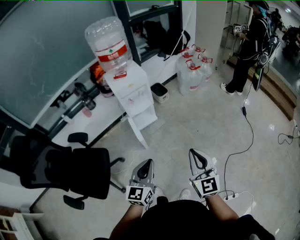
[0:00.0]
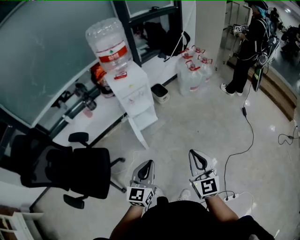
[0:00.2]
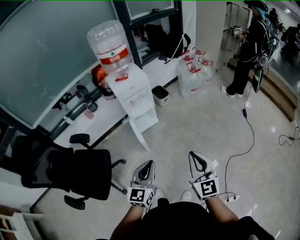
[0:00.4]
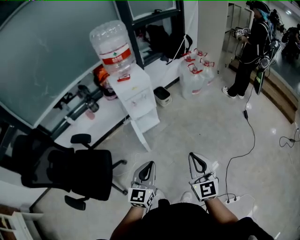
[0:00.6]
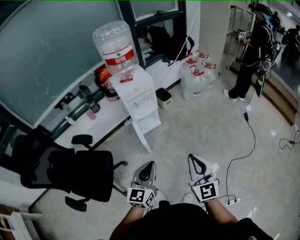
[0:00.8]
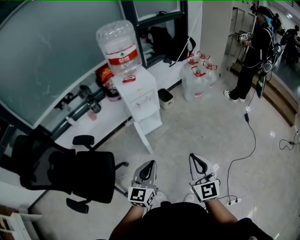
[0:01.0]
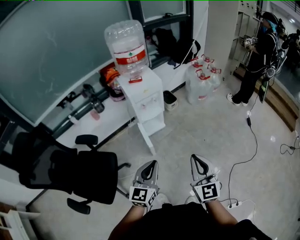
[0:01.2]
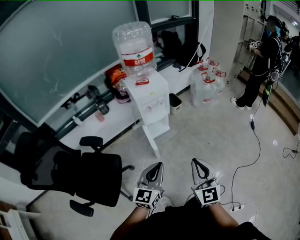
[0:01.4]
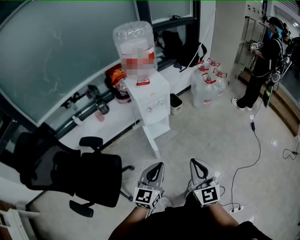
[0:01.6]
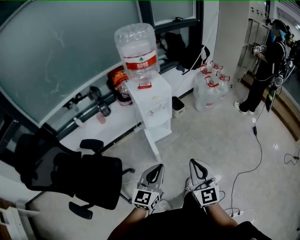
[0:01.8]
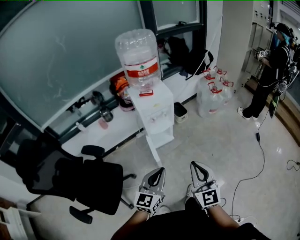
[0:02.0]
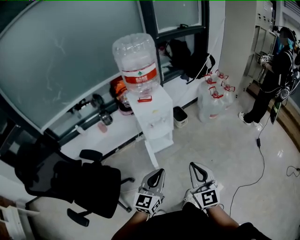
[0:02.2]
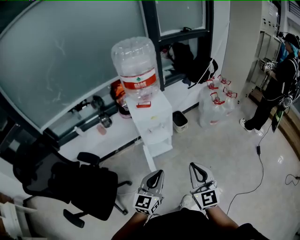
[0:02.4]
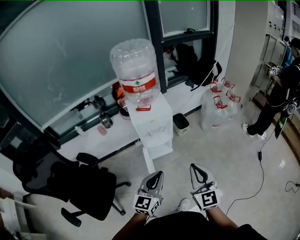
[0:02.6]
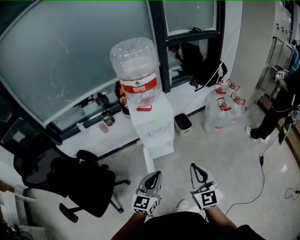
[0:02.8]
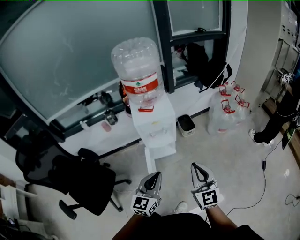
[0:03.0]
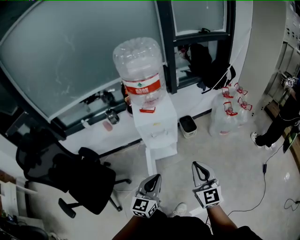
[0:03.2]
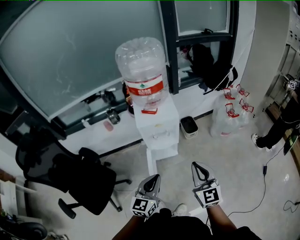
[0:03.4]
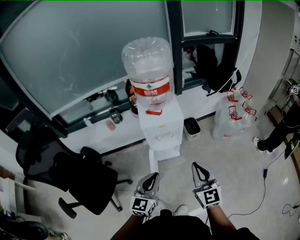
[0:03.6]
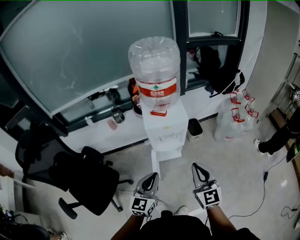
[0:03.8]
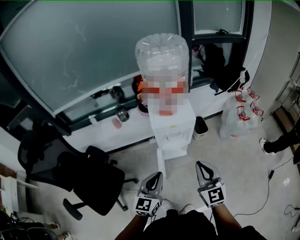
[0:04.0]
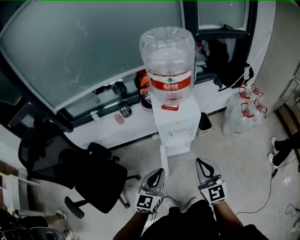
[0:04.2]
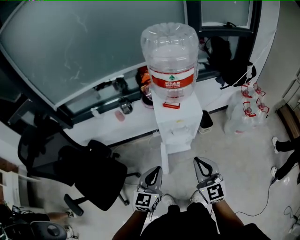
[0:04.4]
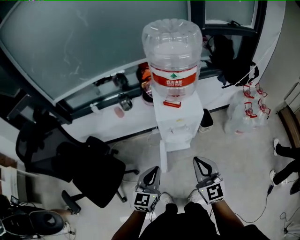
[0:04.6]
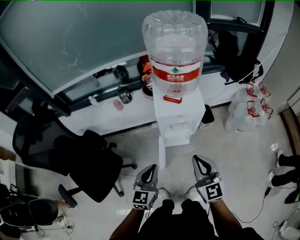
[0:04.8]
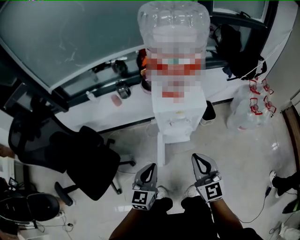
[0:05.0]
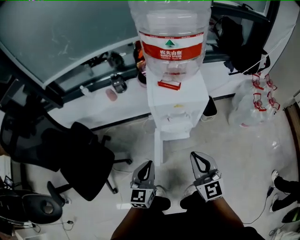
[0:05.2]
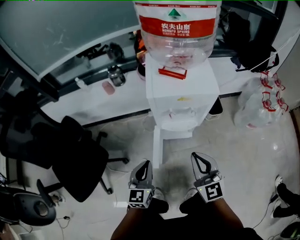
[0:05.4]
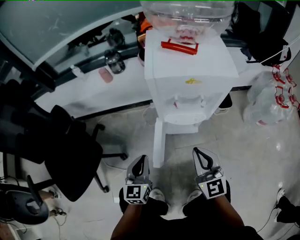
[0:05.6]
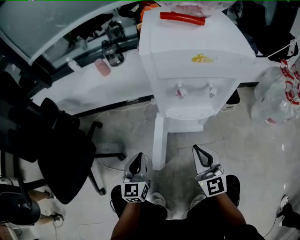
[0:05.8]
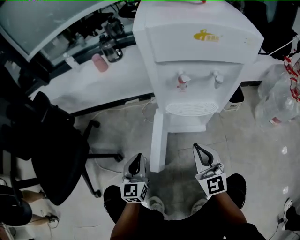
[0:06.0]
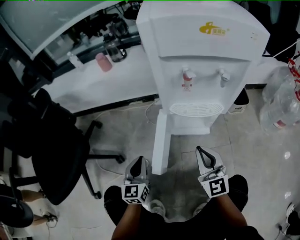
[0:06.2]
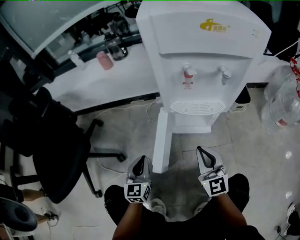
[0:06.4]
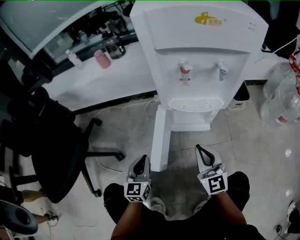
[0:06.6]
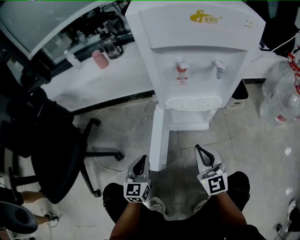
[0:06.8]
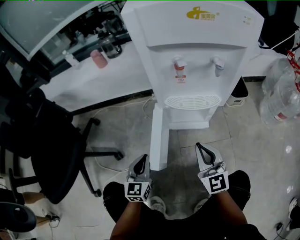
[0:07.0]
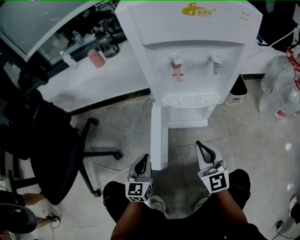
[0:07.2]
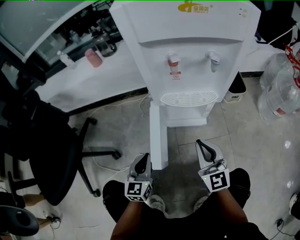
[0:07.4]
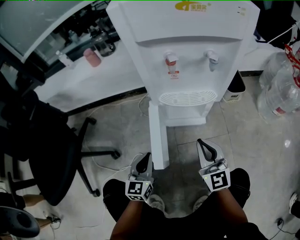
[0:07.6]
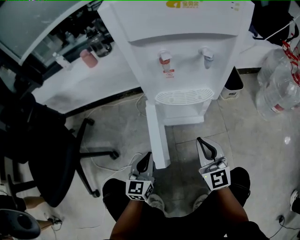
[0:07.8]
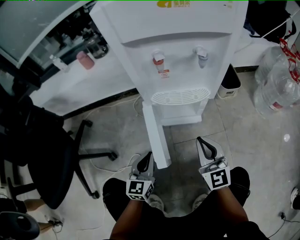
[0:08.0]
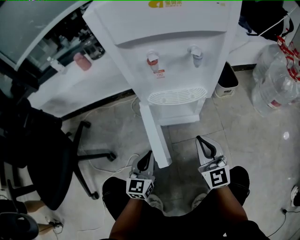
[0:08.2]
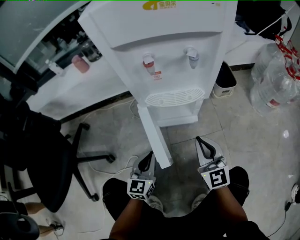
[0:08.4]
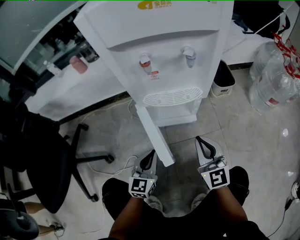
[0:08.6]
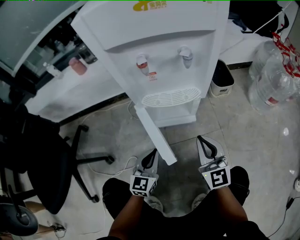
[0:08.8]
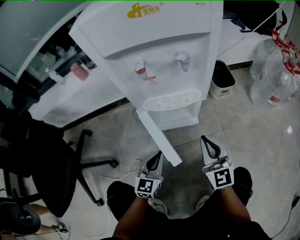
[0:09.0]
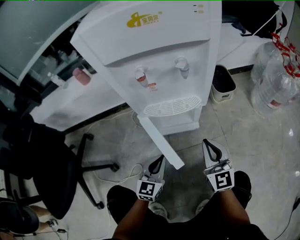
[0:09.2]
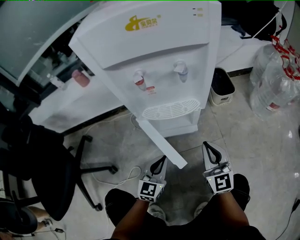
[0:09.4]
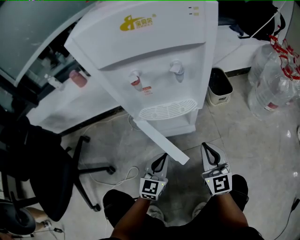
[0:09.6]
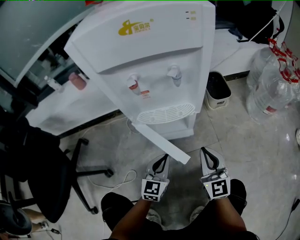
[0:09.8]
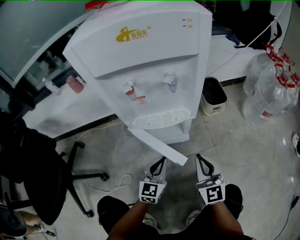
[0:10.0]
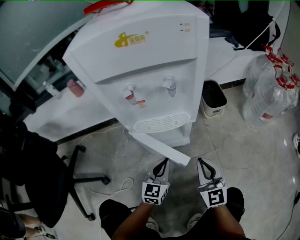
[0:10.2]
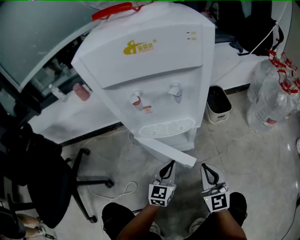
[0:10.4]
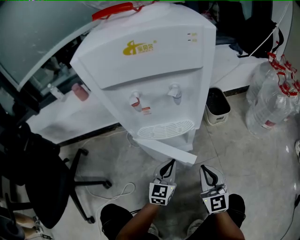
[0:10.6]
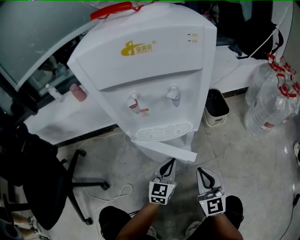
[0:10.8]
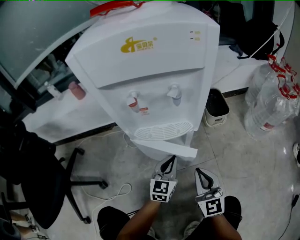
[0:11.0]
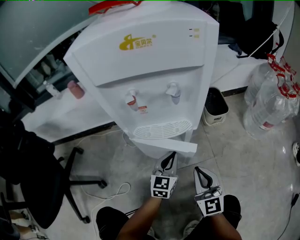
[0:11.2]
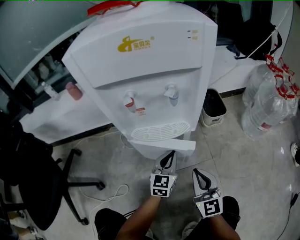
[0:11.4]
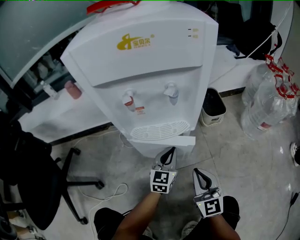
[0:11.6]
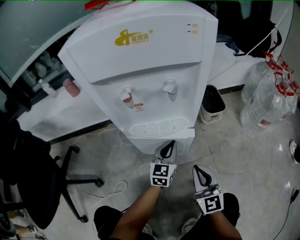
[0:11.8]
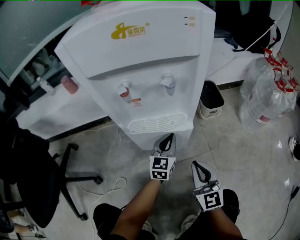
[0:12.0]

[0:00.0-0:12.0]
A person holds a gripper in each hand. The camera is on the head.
0:00.0 to 0:01.6: The left gripper heads to the left, covering approximately 5 cm, while the right gripper goes roughly 10 cm to the left.
0:01.6 to 0:03.0: Both grippers travel together forward and to the right, about 25 cm.
0:03.0 to 0:04.4: The grippers both shift to the left and forward by some 15 cm.
0:04.4 to 0:06.0: Both grippers move downward, roughly 50 cm. The left gripper rotates some 20 degrees.
0:06.0 to 0:07.6: The right gripper heads downward, covering approximately 5 cm. The left gripper moves downward and to the right, some 10 cm.
0:07.6 to 0:09.0: The two grippers go roughly 10 cm to the right.
0:09.0 to 0:10.4: The left gripper moves to the right and forward, roughly 10 cm.
0:10.4 to 0:12.0: The left gripper travels forward by some 10 cm.

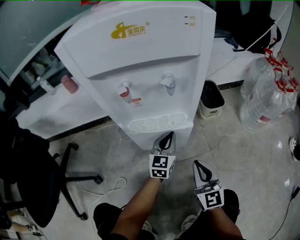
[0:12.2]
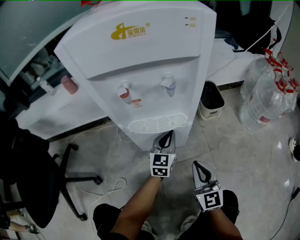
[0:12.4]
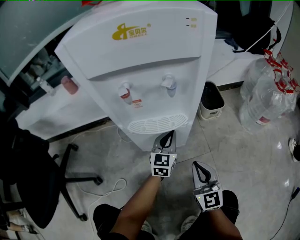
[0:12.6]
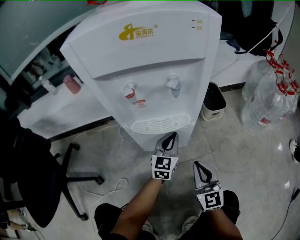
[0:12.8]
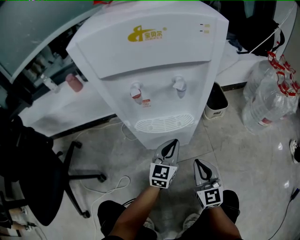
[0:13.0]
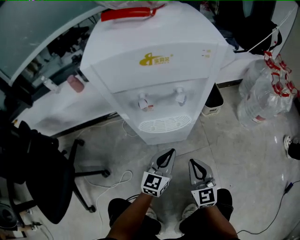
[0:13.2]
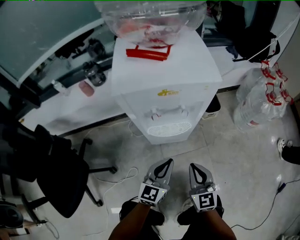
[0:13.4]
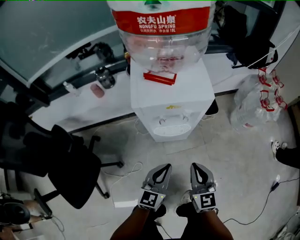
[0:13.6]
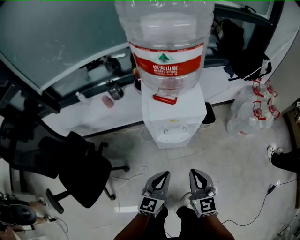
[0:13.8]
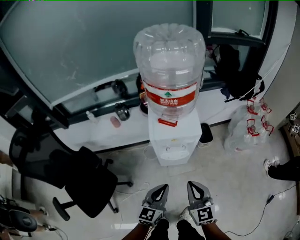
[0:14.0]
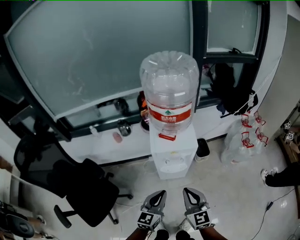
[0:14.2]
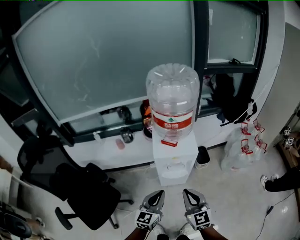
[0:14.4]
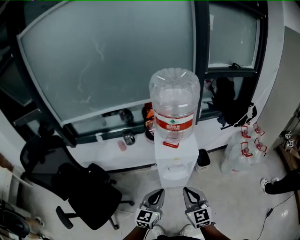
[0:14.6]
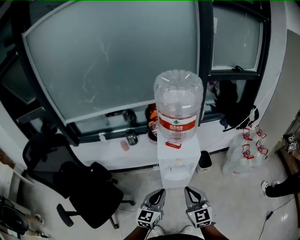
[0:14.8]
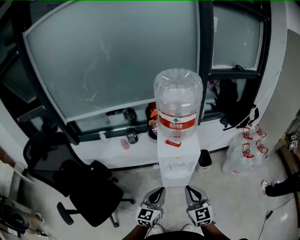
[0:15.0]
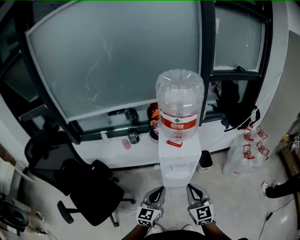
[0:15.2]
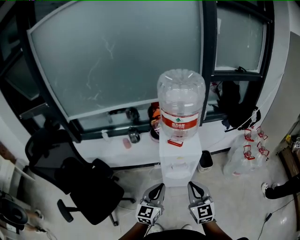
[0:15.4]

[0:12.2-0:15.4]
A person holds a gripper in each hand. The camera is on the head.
0:12.2 to 0:13.8: The right gripper heads upward, covering about 40 cm; the left gripper goes roughly 50 cm upward and backward.
0:13.8 to 0:15.4: Both grippers travel together upward, approximately 20 cm.

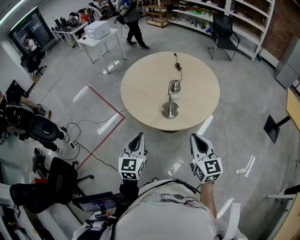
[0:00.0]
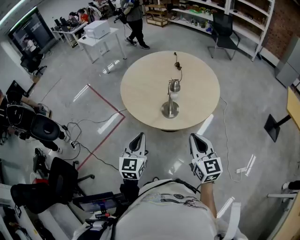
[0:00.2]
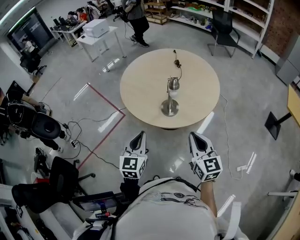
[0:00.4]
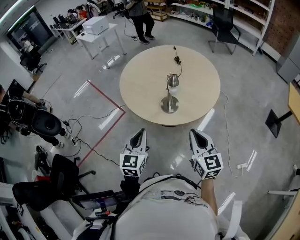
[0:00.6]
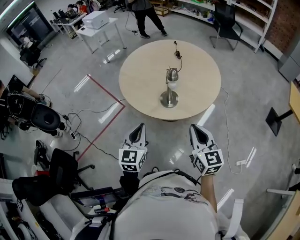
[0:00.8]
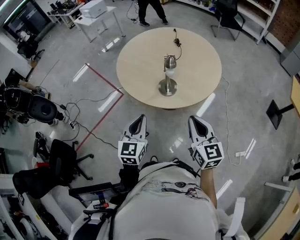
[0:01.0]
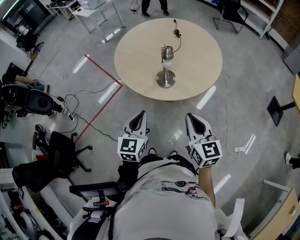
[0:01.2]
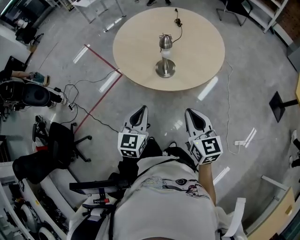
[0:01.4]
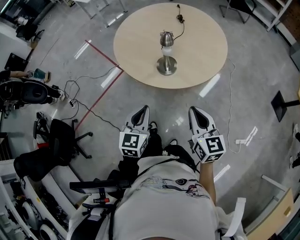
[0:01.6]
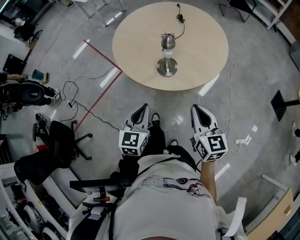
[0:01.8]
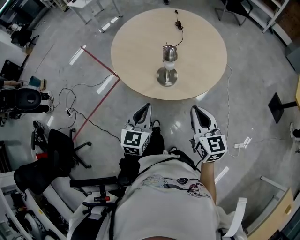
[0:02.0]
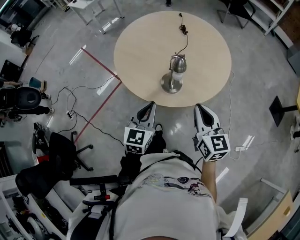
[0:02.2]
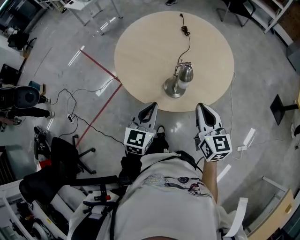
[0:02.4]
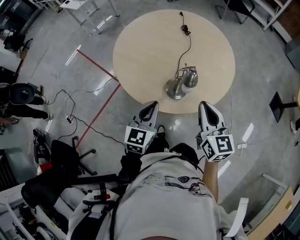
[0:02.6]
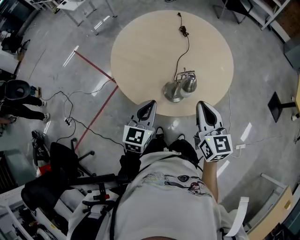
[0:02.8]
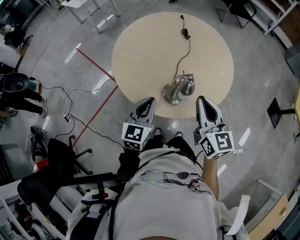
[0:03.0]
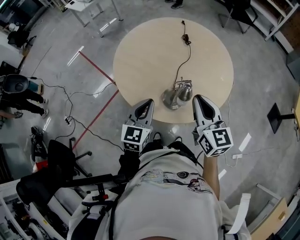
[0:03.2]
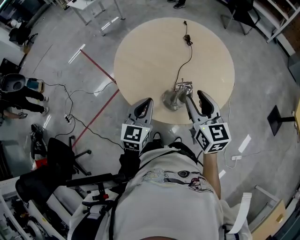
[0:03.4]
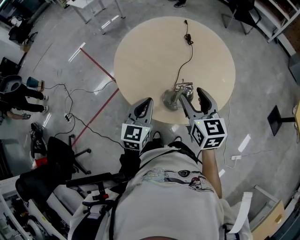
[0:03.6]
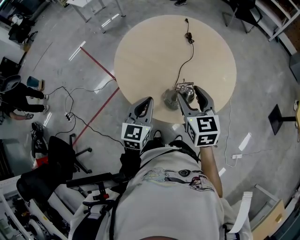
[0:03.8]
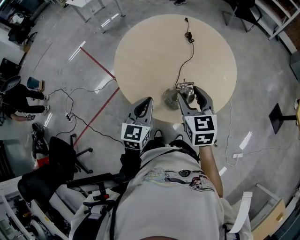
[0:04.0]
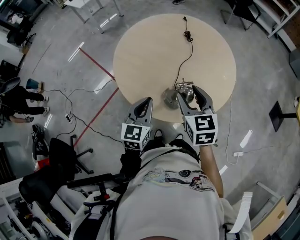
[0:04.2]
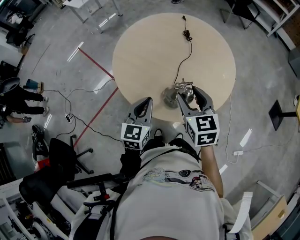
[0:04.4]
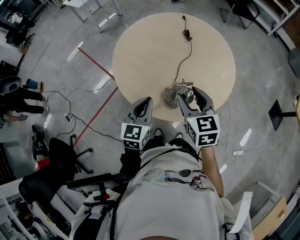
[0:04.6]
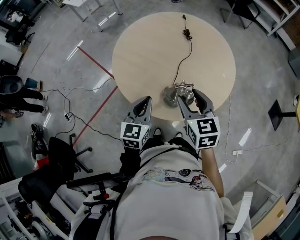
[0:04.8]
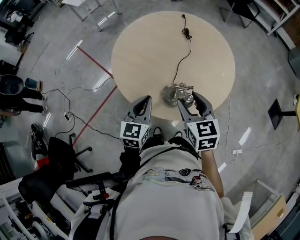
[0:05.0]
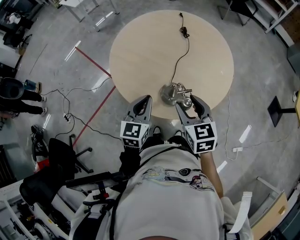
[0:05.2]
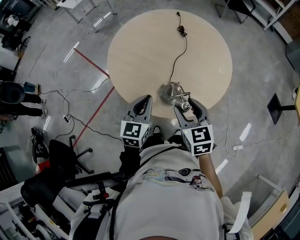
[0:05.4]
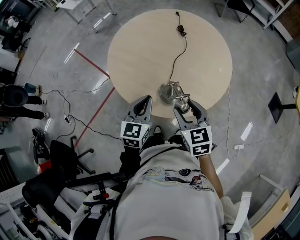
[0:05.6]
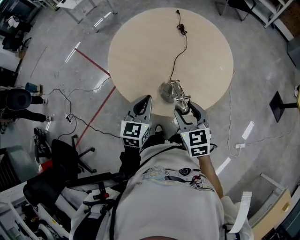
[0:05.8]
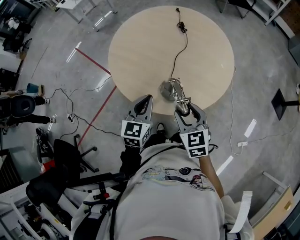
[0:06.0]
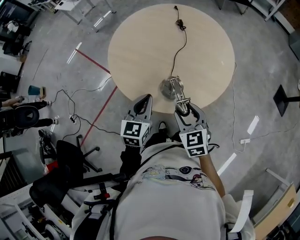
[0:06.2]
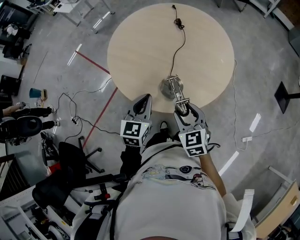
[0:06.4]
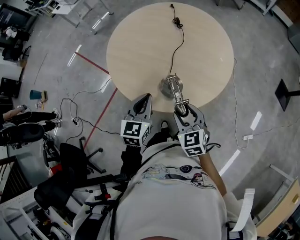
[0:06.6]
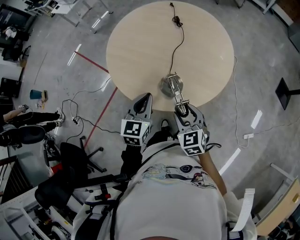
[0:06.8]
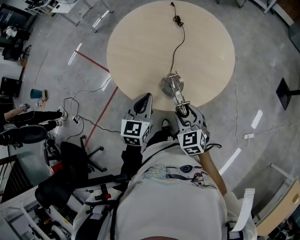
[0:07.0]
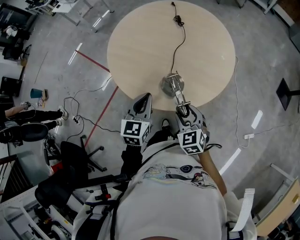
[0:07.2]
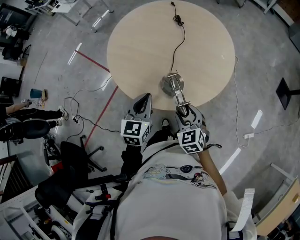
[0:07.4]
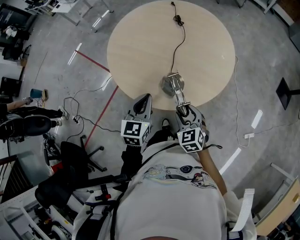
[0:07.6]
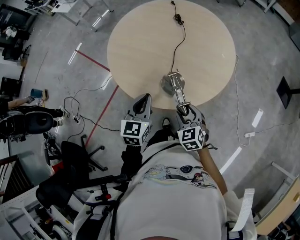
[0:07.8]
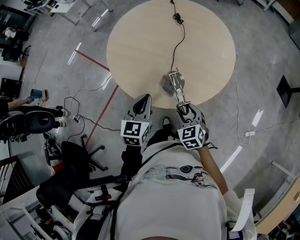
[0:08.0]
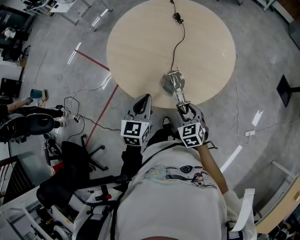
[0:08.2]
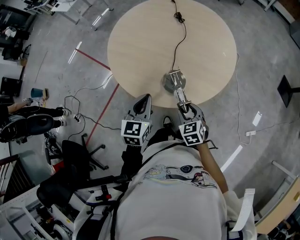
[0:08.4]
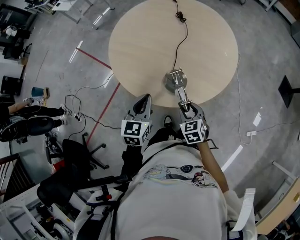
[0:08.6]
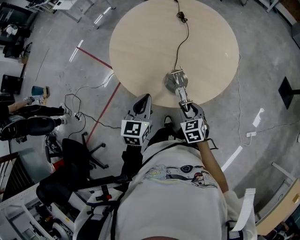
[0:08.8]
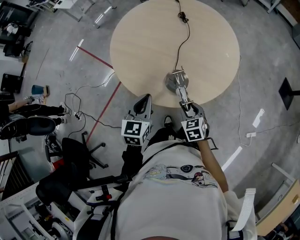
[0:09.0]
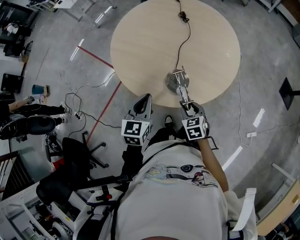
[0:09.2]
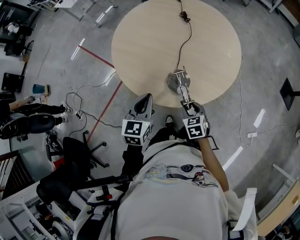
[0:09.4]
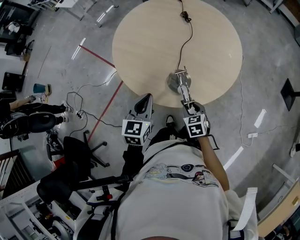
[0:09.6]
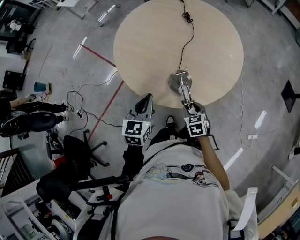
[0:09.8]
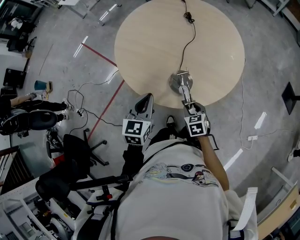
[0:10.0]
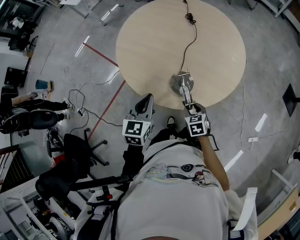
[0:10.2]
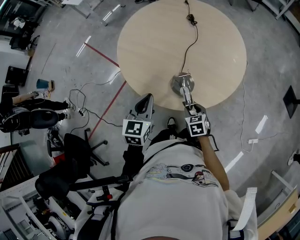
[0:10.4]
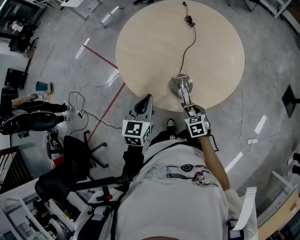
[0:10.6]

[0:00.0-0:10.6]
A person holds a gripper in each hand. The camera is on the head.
0:00.0 to 0:01.6: The left gripper heads to the right and downward, covering some 10 cm; the right gripper is displaced downward and to the right by some 10 cm.
0:01.6 to 0:03.0: Both grippers travel together forward, about 25 cm.
0:03.0 to 0:04.6: The right gripper ends up roughly 5 cm from where it was, swivels about 20 degrees, and opens its fingers.
0:04.6 to 0:06.0: The right gripper shifts roughly 10 cm backward and downward.
0:06.0 to 0:07.6: The right gripper shifts roughly 10 cm downward.
0:07.6 to 0:09.0: The right gripper goes roughly 5 cm downward.
0:09.0 to 0:10.6: The grippers stay close to where they were, moving slightly.
